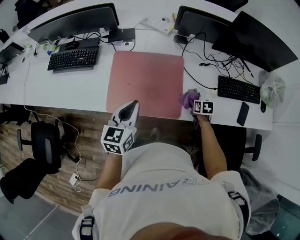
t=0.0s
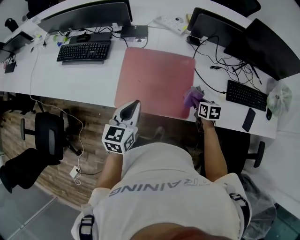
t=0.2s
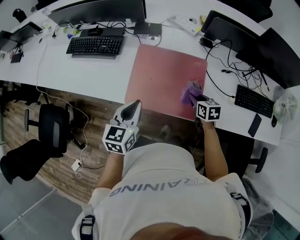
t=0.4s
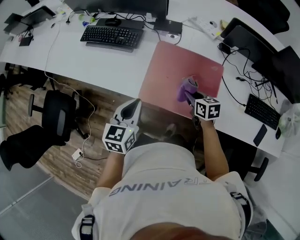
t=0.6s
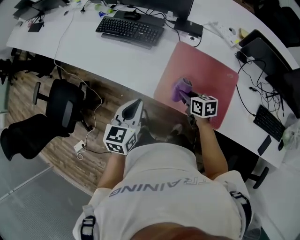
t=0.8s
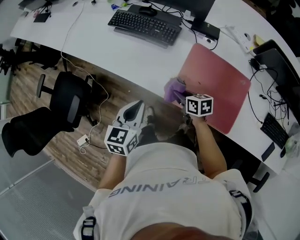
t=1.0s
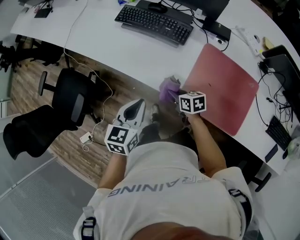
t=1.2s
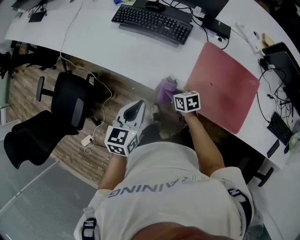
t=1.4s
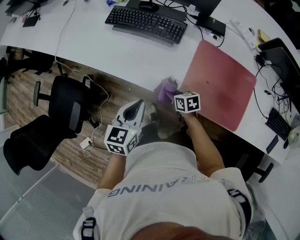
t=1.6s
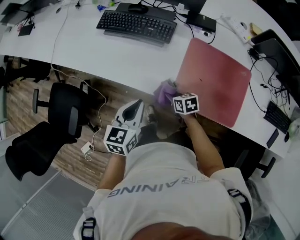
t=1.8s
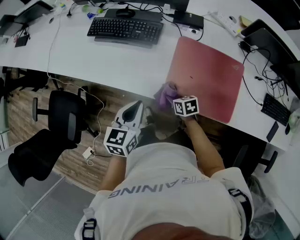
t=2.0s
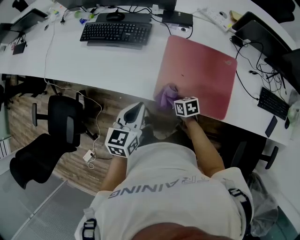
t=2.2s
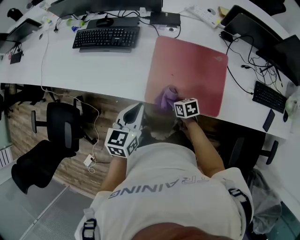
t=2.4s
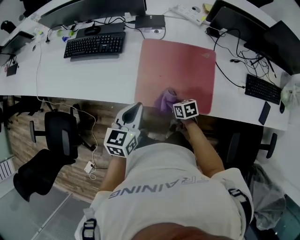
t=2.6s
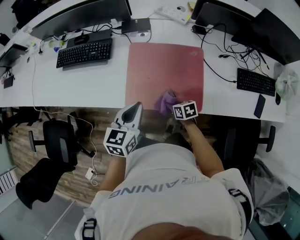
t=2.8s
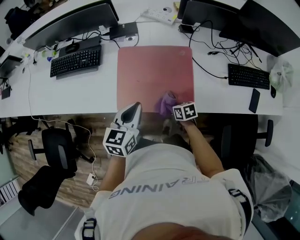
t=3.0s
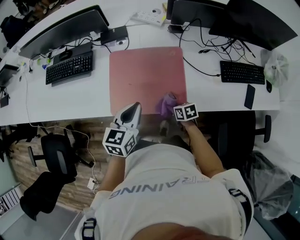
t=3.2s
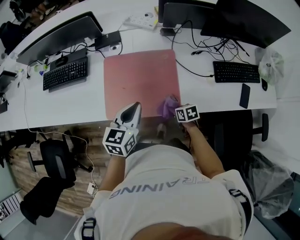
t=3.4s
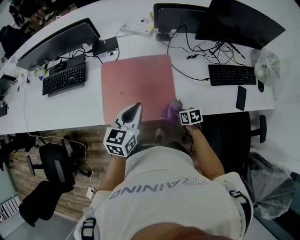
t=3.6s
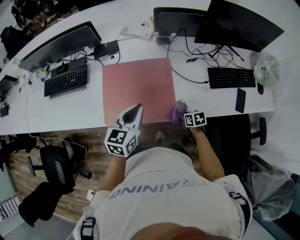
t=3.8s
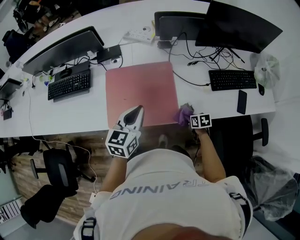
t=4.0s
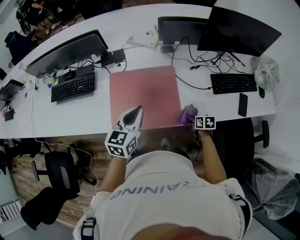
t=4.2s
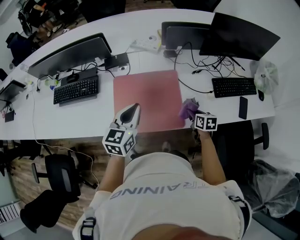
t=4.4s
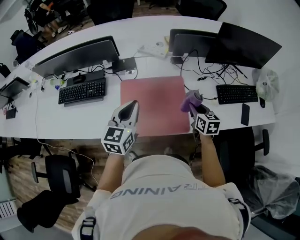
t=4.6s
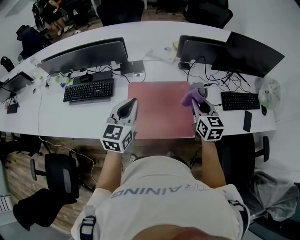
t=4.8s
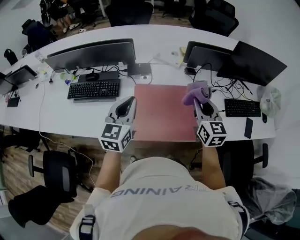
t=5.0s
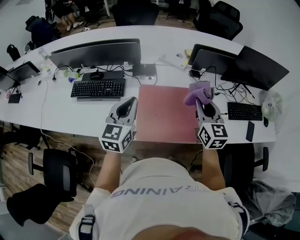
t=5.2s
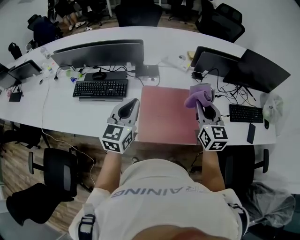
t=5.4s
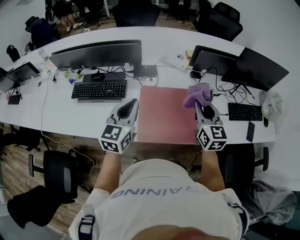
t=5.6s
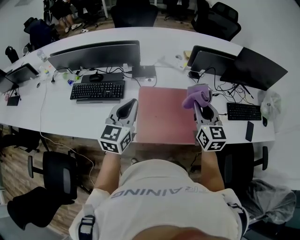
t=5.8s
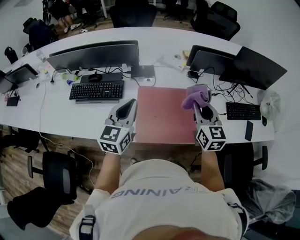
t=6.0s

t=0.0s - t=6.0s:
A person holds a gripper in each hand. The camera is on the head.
t=0.0s - t=1.6s: The left gripper ends up approximately 35 cm from where it was. Meanwhile the right gripper moves roughly 10 cm upward and comes back, and swivels about 40 degrees.
t=1.6s - t=3.0s: The right gripper travels to the right and backward by about 35 cm, and changes its angle by roughly 20 degrees. Meanwhile the left gripper shifts some 30 cm to the right, and rotates some 20 degrees.
t=3.0s - t=4.4s: The left gripper moves upward, approximately 10 cm, while the right gripper goes roughly 20 cm to the right and upward, and rotates roughly 30 degrees.
t=4.4s - t=6.0s: The right gripper heads upward and to the left, covering about 35 cm, and angles its fingers upward, by roughly 30 degrees; the left gripper heads to the left and upward, covering about 20 cm.

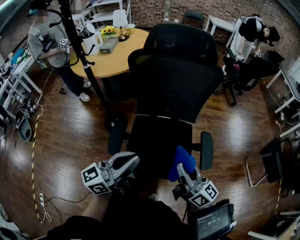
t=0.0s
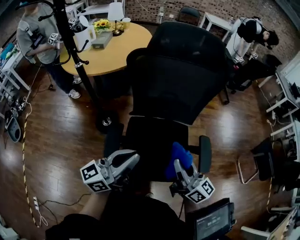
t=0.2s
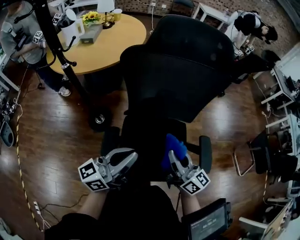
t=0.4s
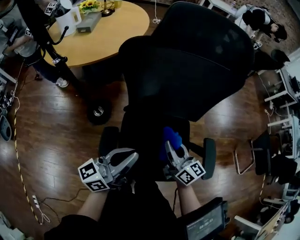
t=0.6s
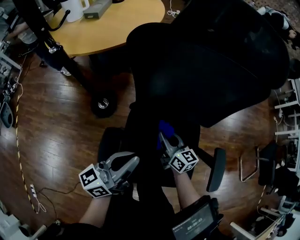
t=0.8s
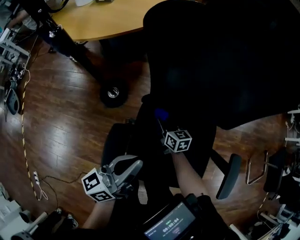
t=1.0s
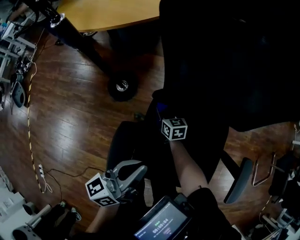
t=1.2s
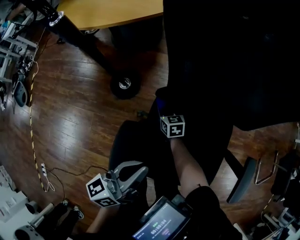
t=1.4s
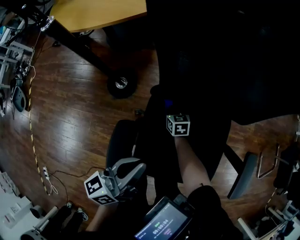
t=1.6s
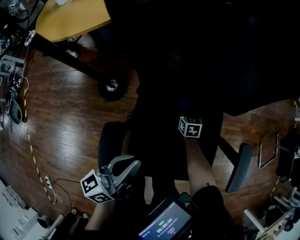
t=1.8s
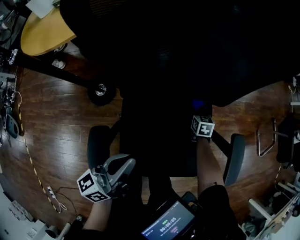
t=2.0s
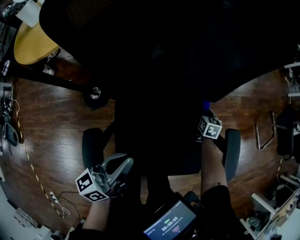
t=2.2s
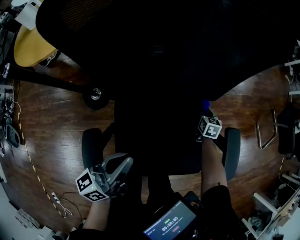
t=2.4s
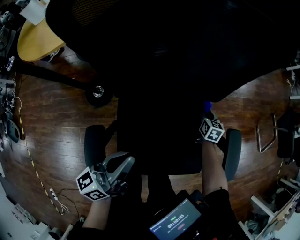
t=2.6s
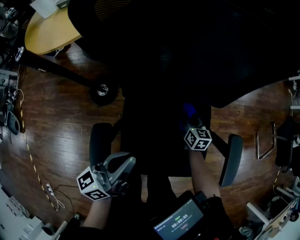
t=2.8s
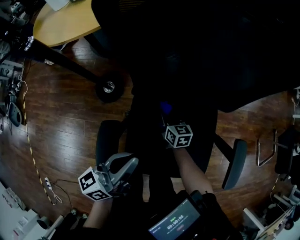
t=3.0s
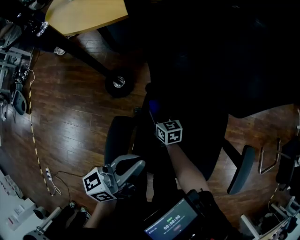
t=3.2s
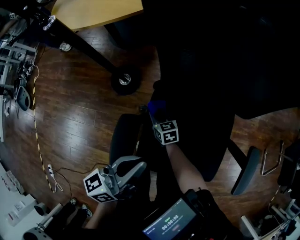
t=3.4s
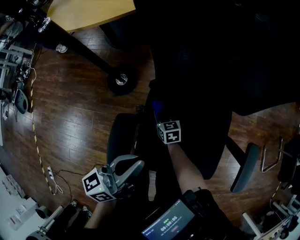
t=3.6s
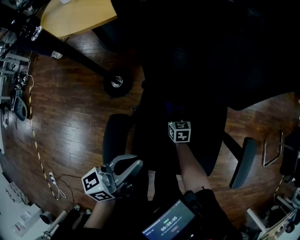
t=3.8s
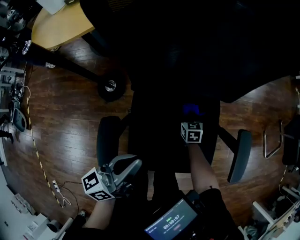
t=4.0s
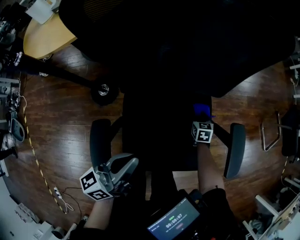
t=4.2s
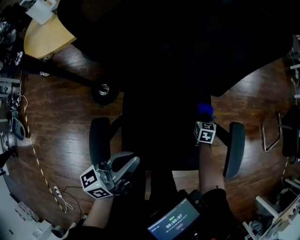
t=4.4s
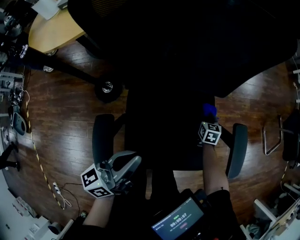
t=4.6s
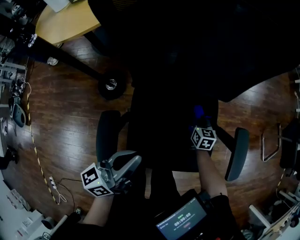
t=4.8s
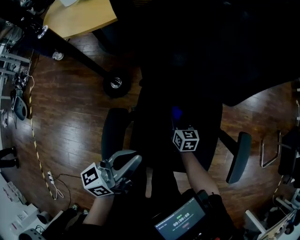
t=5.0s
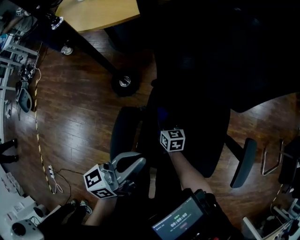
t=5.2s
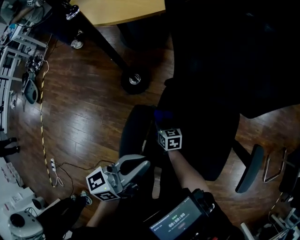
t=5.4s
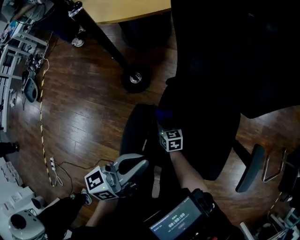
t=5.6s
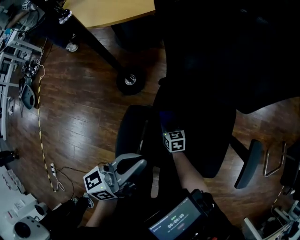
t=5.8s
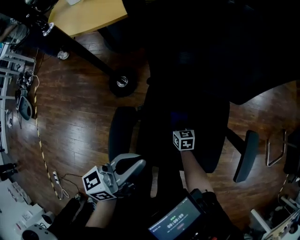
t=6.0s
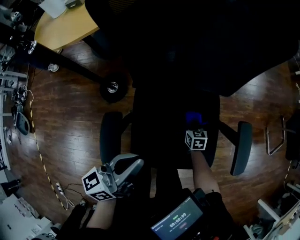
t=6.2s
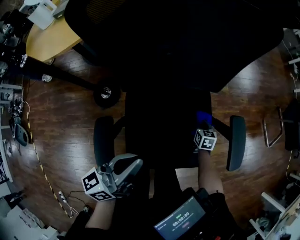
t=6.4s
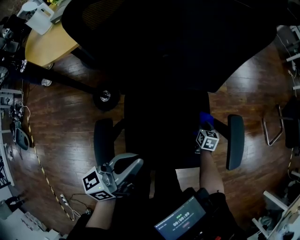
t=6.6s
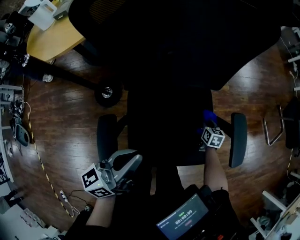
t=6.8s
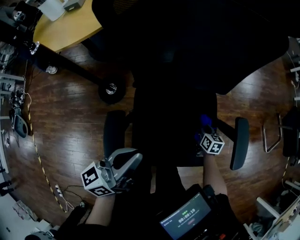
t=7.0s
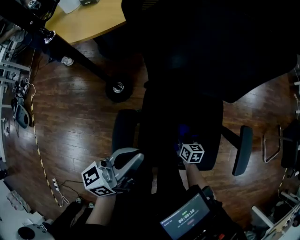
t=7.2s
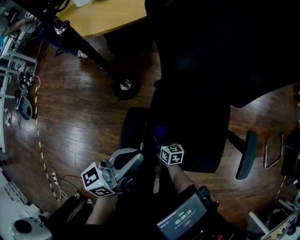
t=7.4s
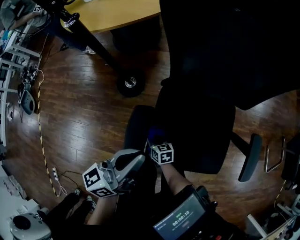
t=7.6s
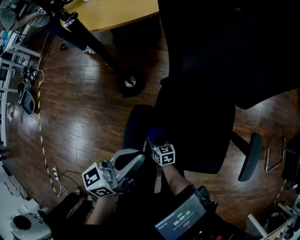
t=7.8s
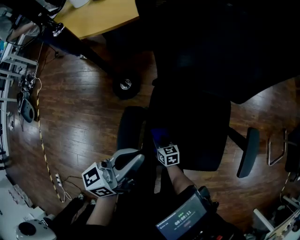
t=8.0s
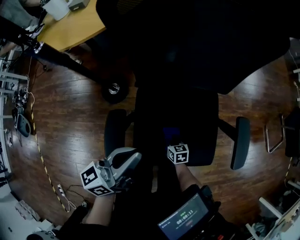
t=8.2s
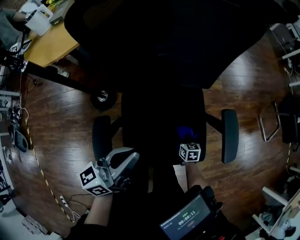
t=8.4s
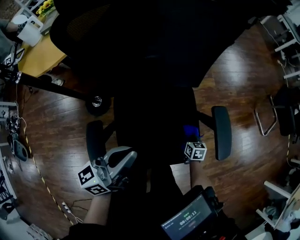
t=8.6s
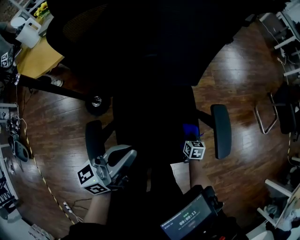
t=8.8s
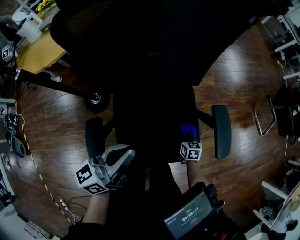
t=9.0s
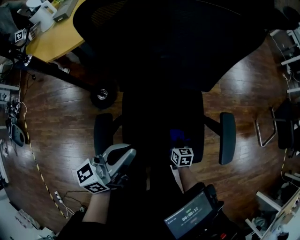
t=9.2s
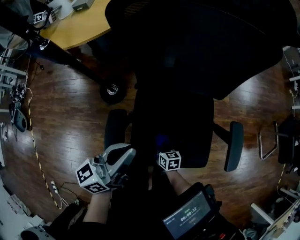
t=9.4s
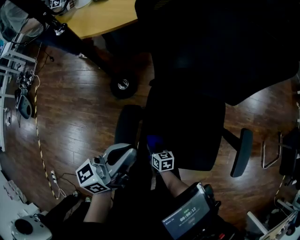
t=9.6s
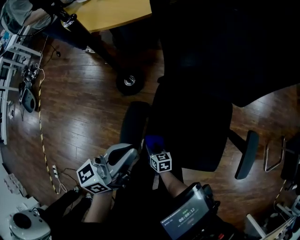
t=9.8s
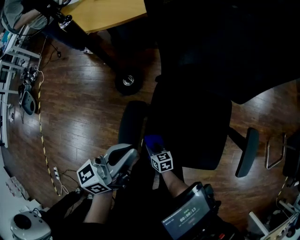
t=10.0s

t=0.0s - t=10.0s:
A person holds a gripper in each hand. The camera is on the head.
t=0.0s - t=1.4s: The right gripper goes about 70 cm downward, forward and to the left, and tilts its fingers some 50 degrees downward. The left gripper heads downward, forward and to the left, covering about 30 cm, and turns by some 30 degrees.
t=1.4s - t=2.8s: The right gripper changes its angle by some 30 degrees. The left gripper moves some 5 cm.
t=2.8s - t=4.2s: The right gripper swivels about 20 degrees.
t=4.2s - t=5.8s: The left gripper shifts by roughly 10 cm. Meanwhile the right gripper changes place by roughly 35 cm, and turns by about 30 degrees.
t=5.8s - t=7.2s: The right gripper rotates roughly 20 degrees.
t=7.2s - t=8.6s: The right gripper changes place by approximately 20 cm. Meanwhile the left gripper ends up approximately 10 cm from where it was.
t=8.6s - t=10.0s: The left gripper ends up about 15 cm from where it was, and turns by some 20 degrees, while the right gripper ends up some 40 cm from where it was, and turns by some 40 degrees.

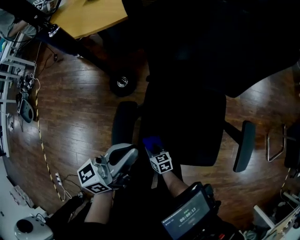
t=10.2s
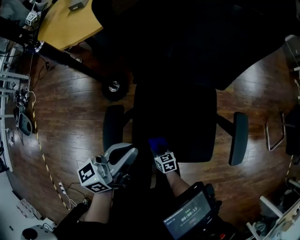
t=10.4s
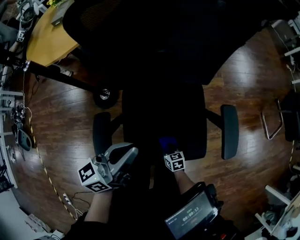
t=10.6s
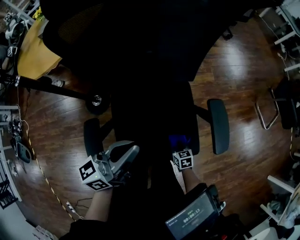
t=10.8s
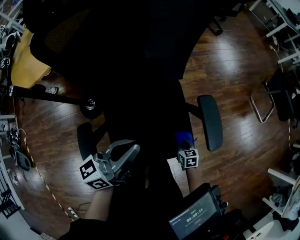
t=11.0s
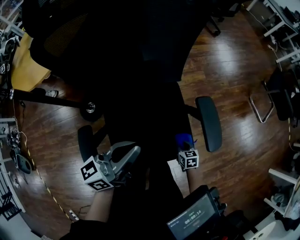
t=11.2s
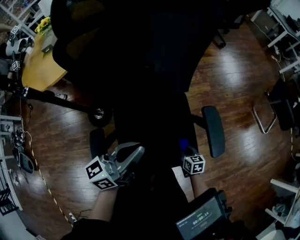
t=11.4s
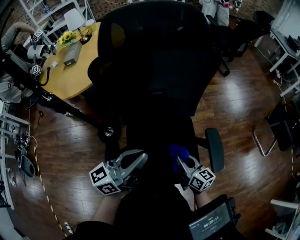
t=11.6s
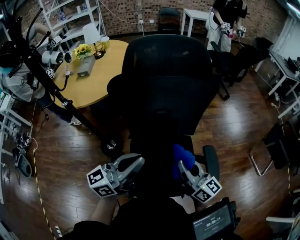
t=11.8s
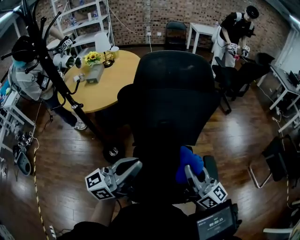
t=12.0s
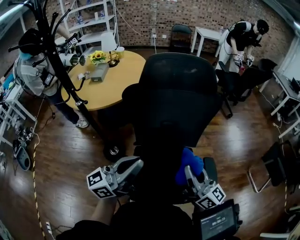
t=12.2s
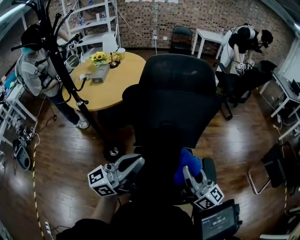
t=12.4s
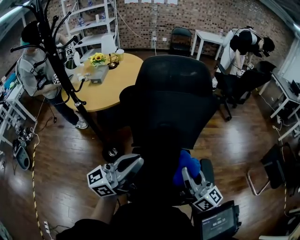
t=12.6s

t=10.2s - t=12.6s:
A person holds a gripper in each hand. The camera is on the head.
t=10.2s - t=11.4s: The left gripper shifts by roughly 15 cm, and turns by roughly 20 degrees. Meanwhile the right gripper moves roughly 35 cm, and changes its angle by roughly 40 degrees.
t=11.4s - t=12.6s: The left gripper travels upward by some 20 cm, and turns by roughly 20 degrees. The right gripper is displaced upward by approximately 50 cm, and angles its fingers upward, by roughly 60 degrees.

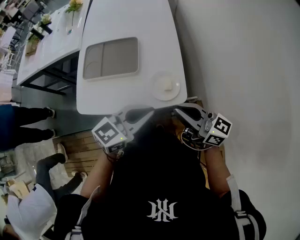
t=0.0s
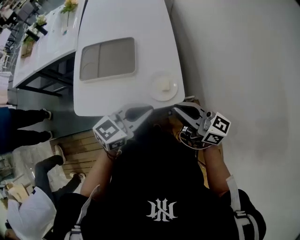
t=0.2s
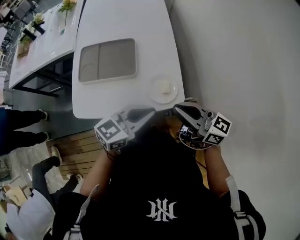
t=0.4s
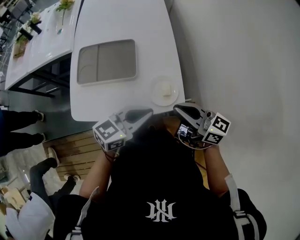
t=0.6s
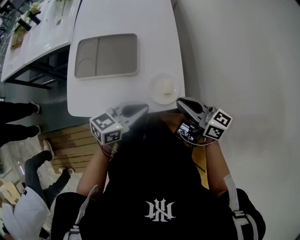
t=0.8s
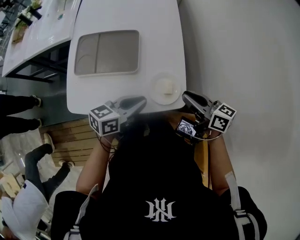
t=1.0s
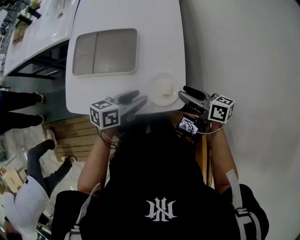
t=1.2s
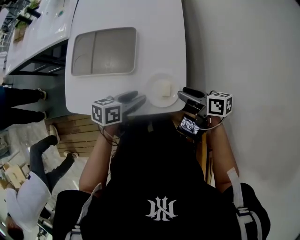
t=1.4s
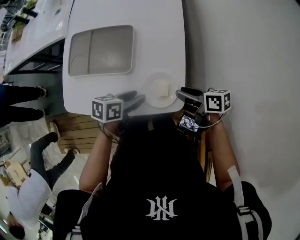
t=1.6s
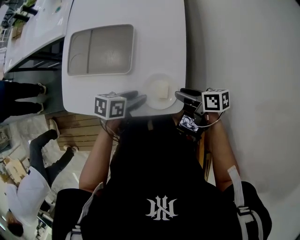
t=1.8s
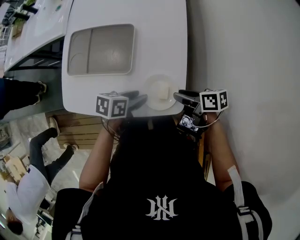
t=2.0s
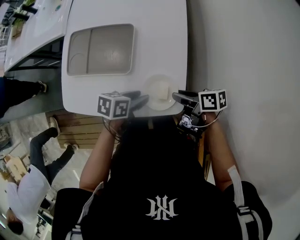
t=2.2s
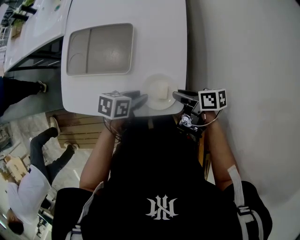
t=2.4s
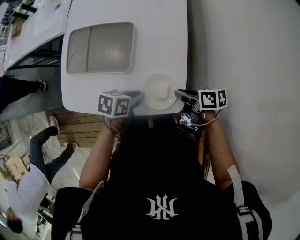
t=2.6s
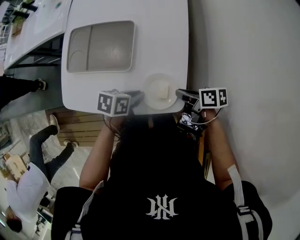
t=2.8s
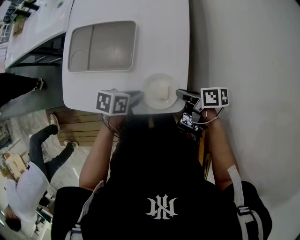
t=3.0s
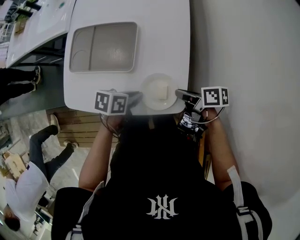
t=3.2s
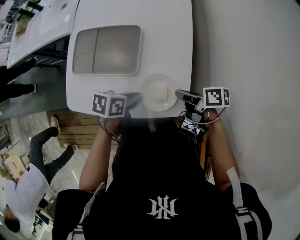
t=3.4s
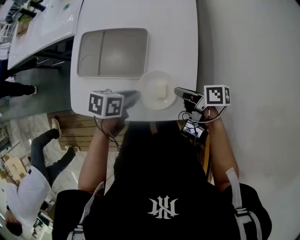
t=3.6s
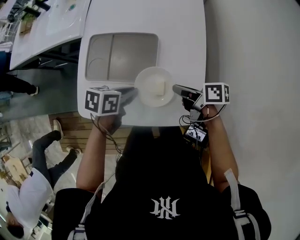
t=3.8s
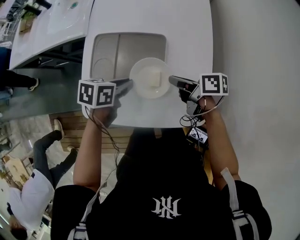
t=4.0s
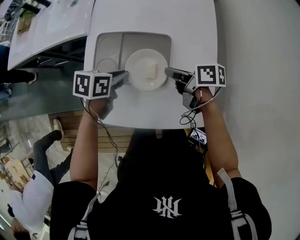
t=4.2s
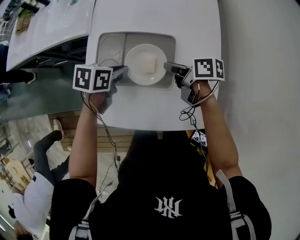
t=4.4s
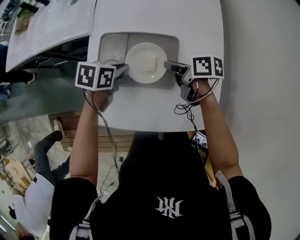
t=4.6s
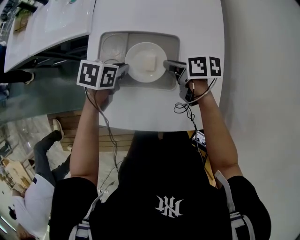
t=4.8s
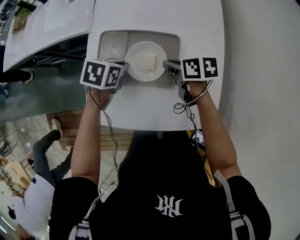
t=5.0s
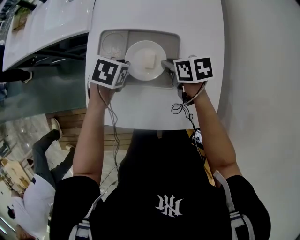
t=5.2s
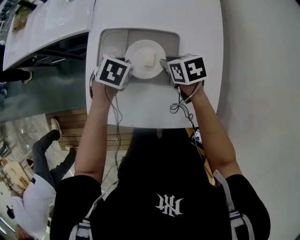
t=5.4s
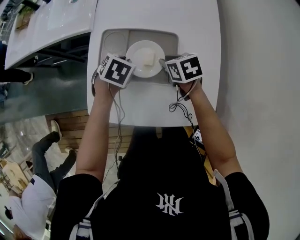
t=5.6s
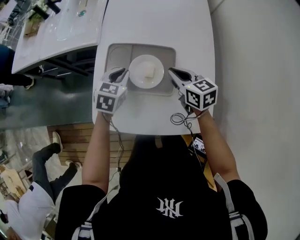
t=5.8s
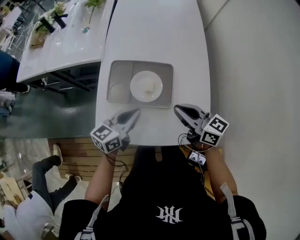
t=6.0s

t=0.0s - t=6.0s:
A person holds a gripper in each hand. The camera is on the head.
t=0.0s - t=1.6s: The grippers both shift downward by roughly 20 cm. The right gripper tilts its fingers roughly 40 degrees downward, and opens; the left gripper rolls counterclockwise, seen from behind, by roughly 40 degrees, and opens up.
t=1.6s - t=3.0s: The right gripper closes. Meanwhile the left gripper closes up.
t=3.0s - t=4.4s: The right gripper shifts by some 25 cm, while the left gripper changes place by roughly 25 cm.
t=4.4s - t=6.0s: The left gripper travels backward and upward by some 10 cm, and tilts its fingers approximately 40 degrees upward, while the right gripper is displaced upward and backward by roughly 15 cm, and rolls counterclockwise, seen from behind, by approximately 40 degrees.
